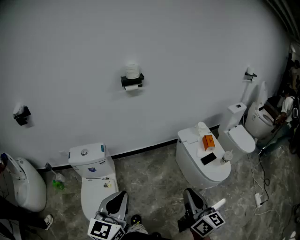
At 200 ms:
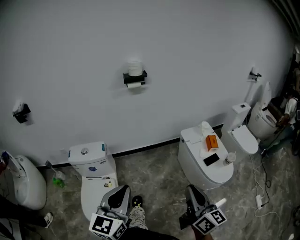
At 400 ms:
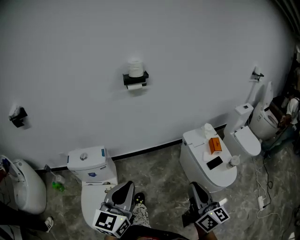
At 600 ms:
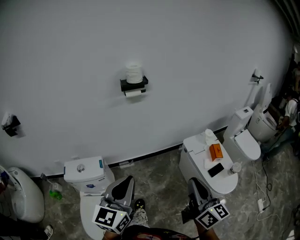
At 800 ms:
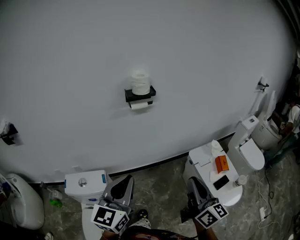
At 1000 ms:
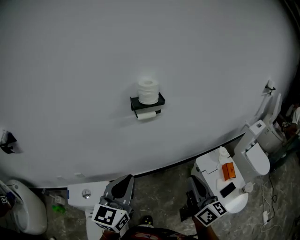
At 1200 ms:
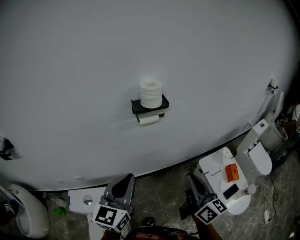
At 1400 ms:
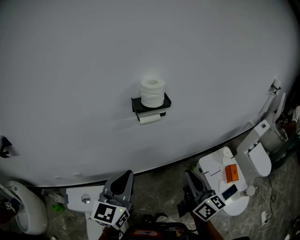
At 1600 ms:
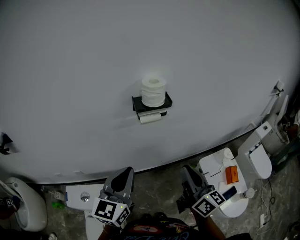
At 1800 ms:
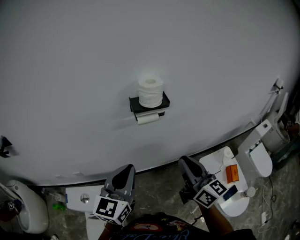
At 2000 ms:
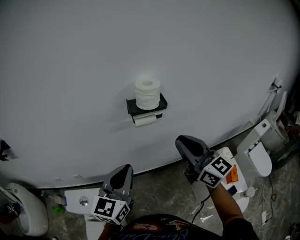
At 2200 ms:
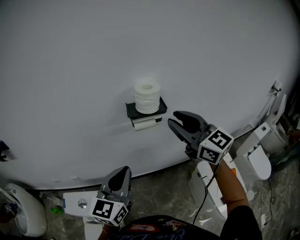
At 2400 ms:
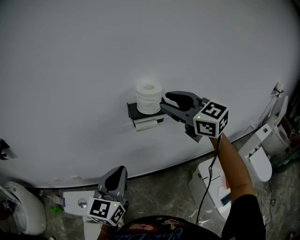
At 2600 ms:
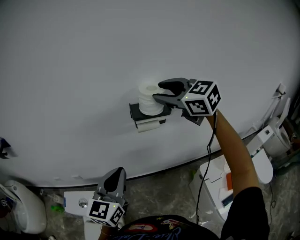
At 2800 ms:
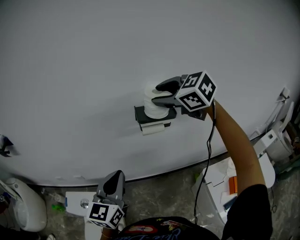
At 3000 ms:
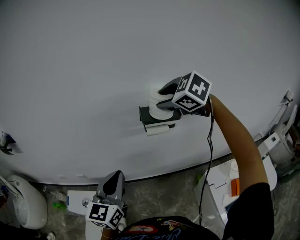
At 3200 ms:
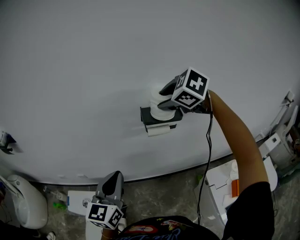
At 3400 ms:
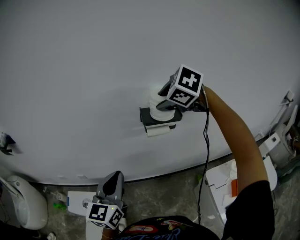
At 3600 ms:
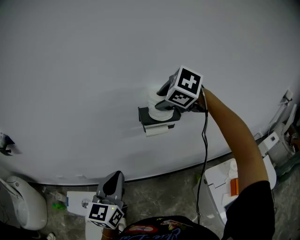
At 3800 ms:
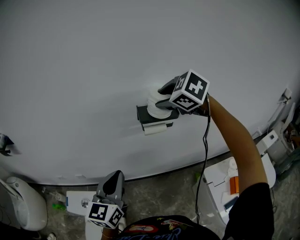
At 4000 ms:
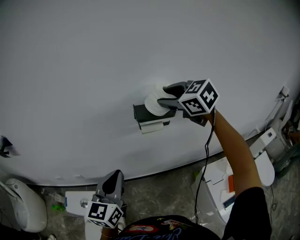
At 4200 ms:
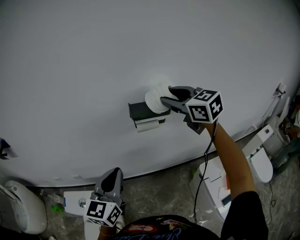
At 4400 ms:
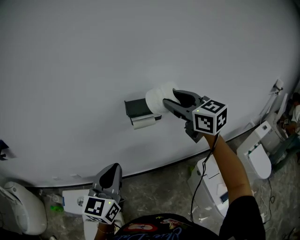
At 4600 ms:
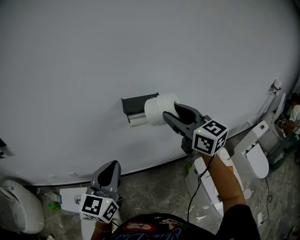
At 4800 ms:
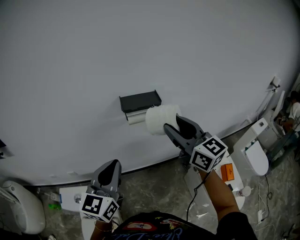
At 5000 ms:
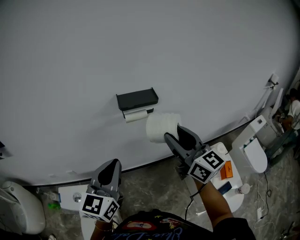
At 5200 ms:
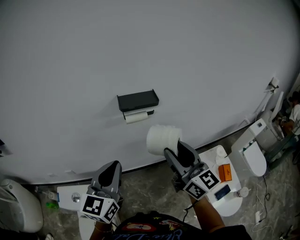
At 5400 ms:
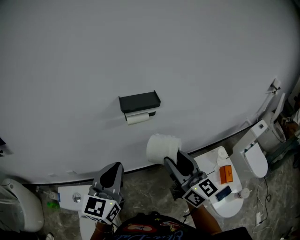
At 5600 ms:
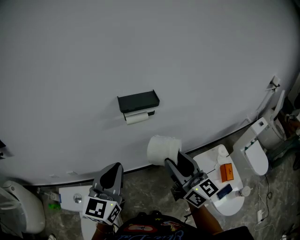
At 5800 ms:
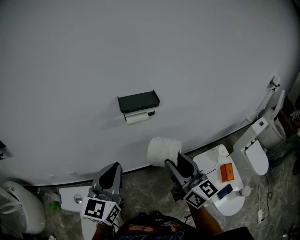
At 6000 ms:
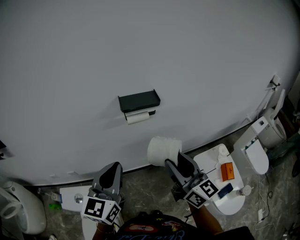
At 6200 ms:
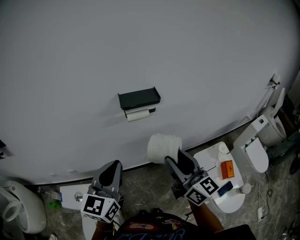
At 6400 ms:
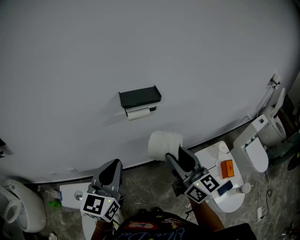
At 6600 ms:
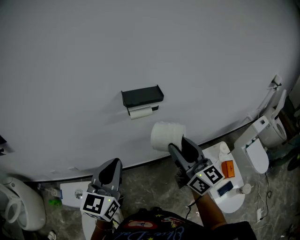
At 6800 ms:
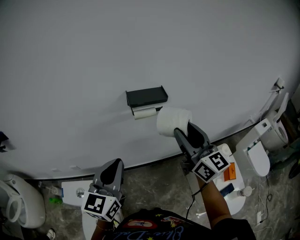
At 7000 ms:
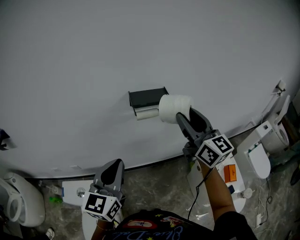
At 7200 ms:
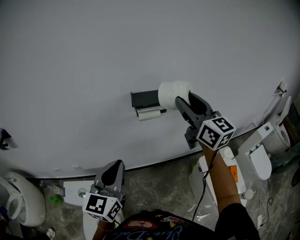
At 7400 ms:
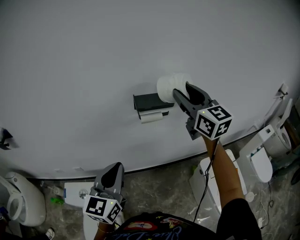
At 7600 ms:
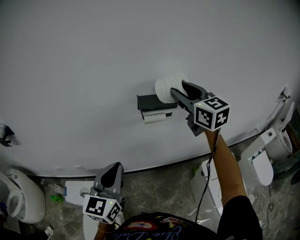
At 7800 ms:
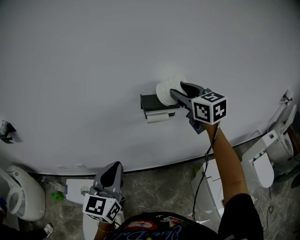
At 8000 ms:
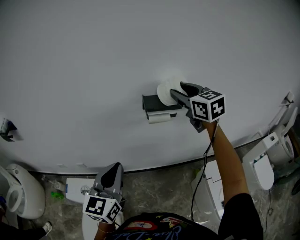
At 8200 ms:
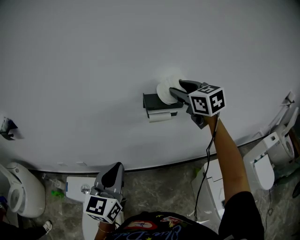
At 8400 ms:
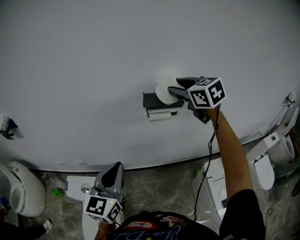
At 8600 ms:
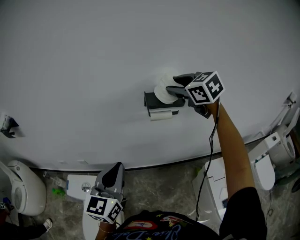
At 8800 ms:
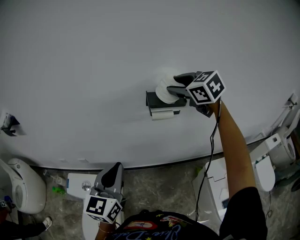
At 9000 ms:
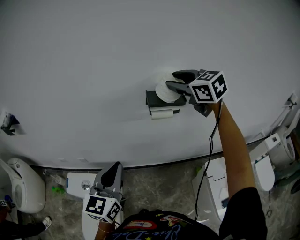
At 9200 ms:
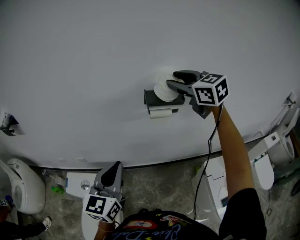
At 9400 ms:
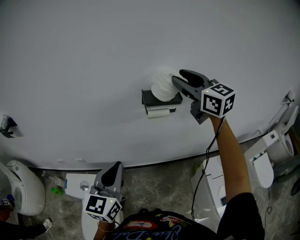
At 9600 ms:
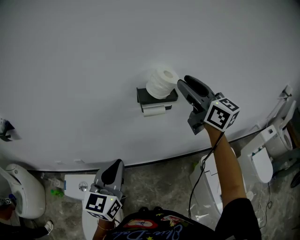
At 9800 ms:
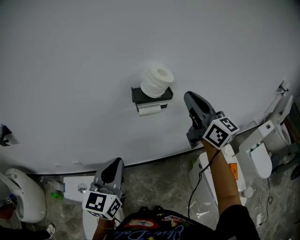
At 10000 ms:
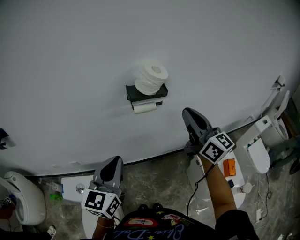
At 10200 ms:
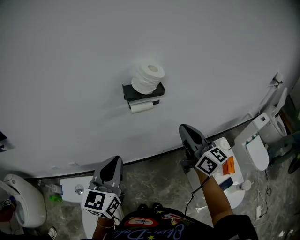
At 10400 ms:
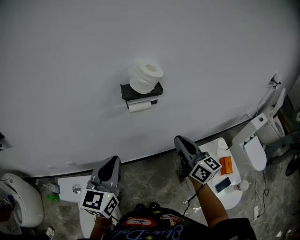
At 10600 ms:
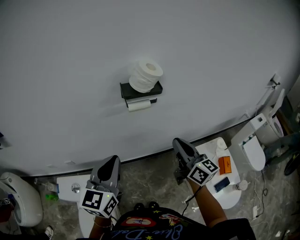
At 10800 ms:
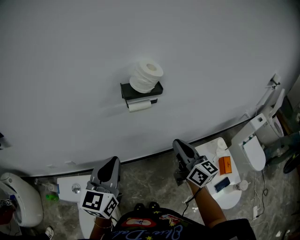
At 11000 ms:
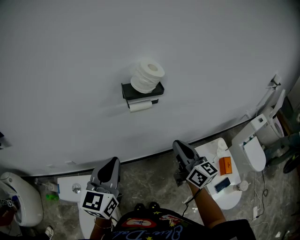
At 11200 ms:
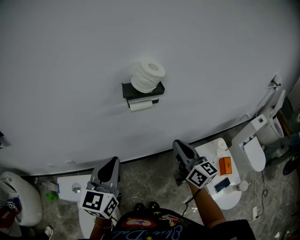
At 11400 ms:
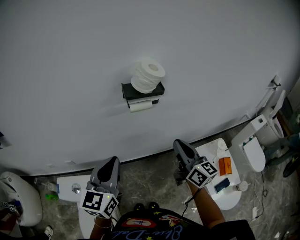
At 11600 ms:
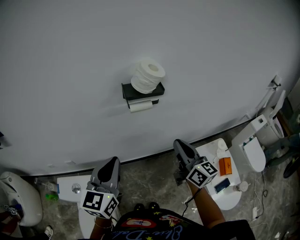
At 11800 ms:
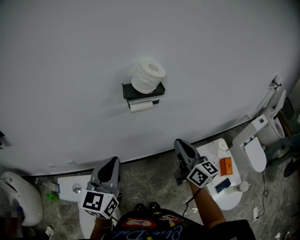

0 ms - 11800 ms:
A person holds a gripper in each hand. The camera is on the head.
0 ms - 1400 ms: Both grippers are carried forward, some 50 cm.
1400 ms - 3000 ms: The left gripper moves forward, approximately 5 cm, while the right gripper is displaced forward and upward by about 35 cm, tips its fingers downward by roughly 50 degrees, and opens its fingers.
3000 ms - 4400 ms: The right gripper heads to the right and backward, covering approximately 10 cm, and angles its fingers upward, by roughly 40 degrees.
4400 ms - 6000 ms: The right gripper shifts roughly 20 cm backward and downward, and changes its angle by some 30 degrees.
6000 ms - 7400 ms: The right gripper travels forward and upward by about 25 cm, and turns by some 20 degrees.
7400 ms - 8800 ms: The right gripper goes roughly 10 cm forward and to the left, and tips its fingers downward by roughly 40 degrees.
8800 ms - 10400 ms: The right gripper moves backward, downward and to the right, about 25 cm, tilts its fingers roughly 40 degrees upward, and closes its fingers; the left gripper moves to the right, some 5 cm.
10400 ms - 11800 ms: The grippers make only small movements.

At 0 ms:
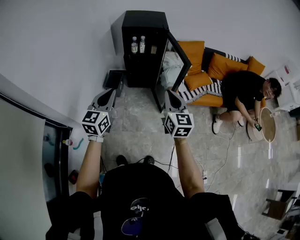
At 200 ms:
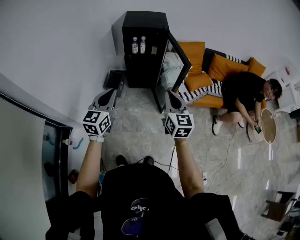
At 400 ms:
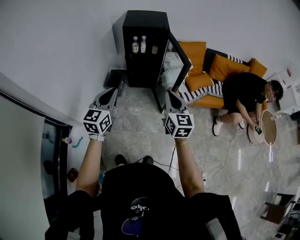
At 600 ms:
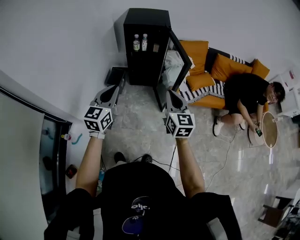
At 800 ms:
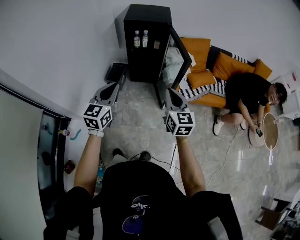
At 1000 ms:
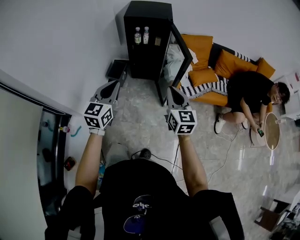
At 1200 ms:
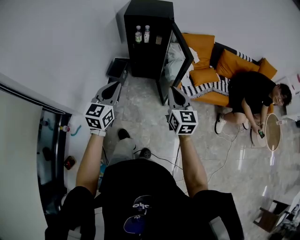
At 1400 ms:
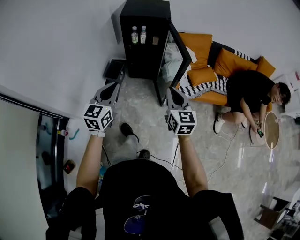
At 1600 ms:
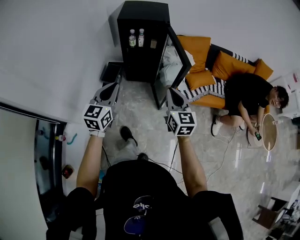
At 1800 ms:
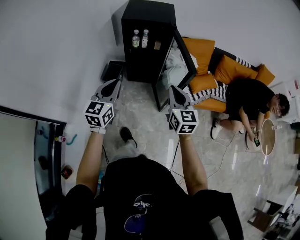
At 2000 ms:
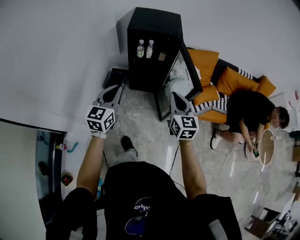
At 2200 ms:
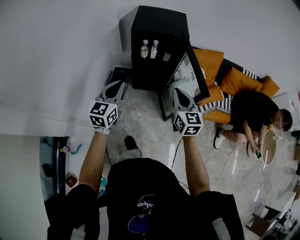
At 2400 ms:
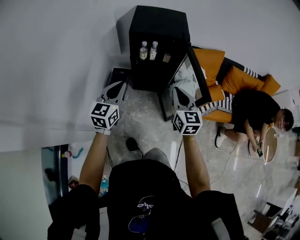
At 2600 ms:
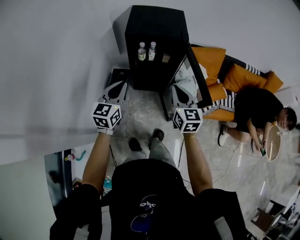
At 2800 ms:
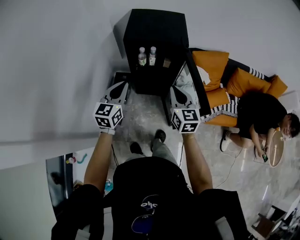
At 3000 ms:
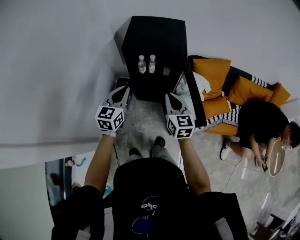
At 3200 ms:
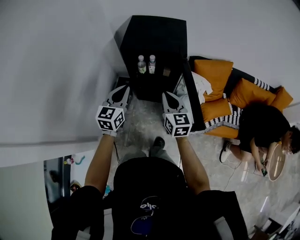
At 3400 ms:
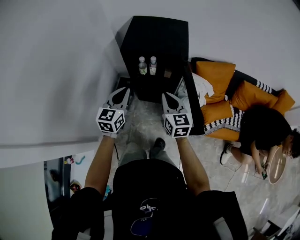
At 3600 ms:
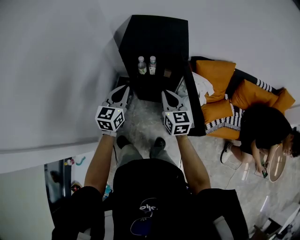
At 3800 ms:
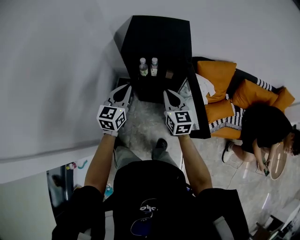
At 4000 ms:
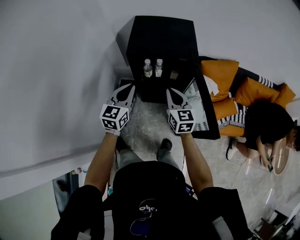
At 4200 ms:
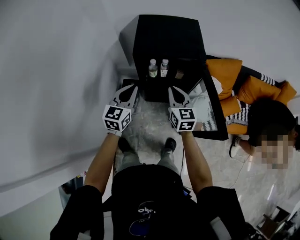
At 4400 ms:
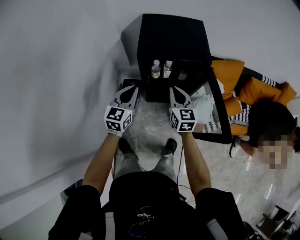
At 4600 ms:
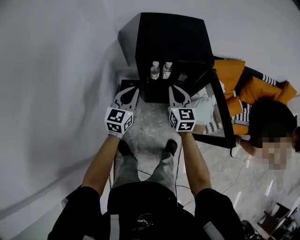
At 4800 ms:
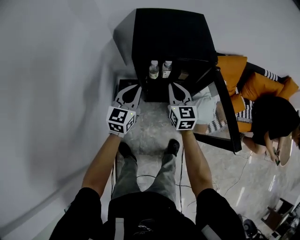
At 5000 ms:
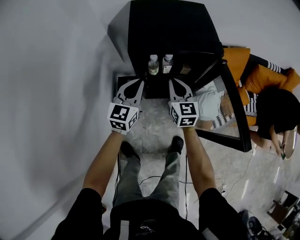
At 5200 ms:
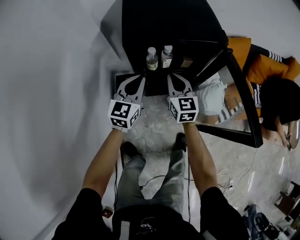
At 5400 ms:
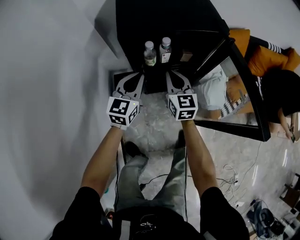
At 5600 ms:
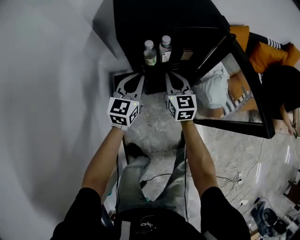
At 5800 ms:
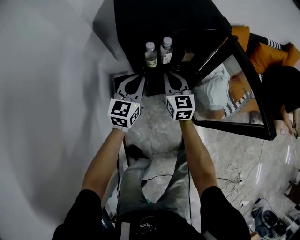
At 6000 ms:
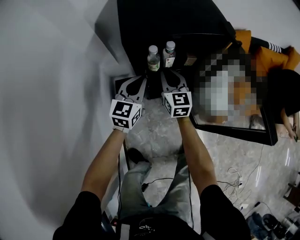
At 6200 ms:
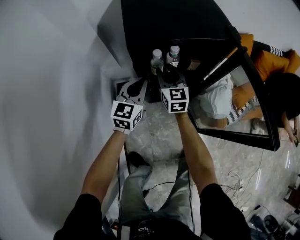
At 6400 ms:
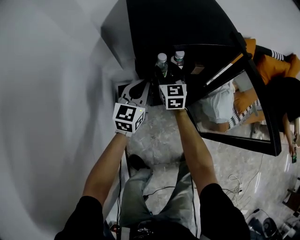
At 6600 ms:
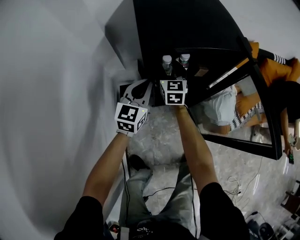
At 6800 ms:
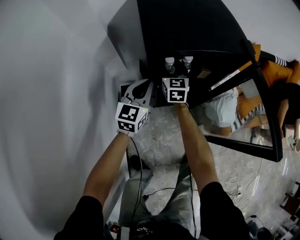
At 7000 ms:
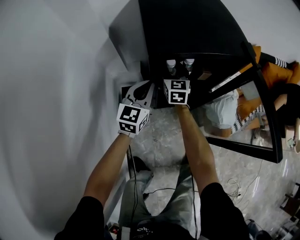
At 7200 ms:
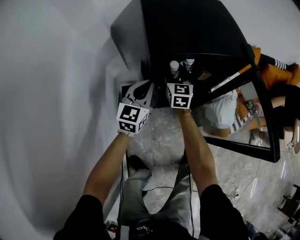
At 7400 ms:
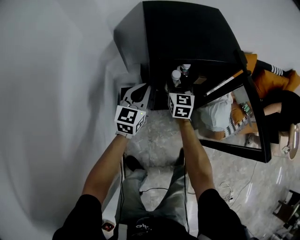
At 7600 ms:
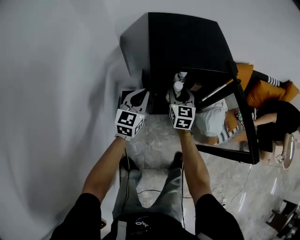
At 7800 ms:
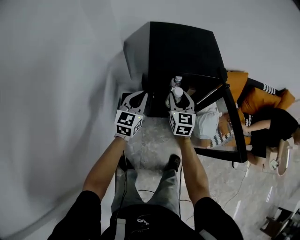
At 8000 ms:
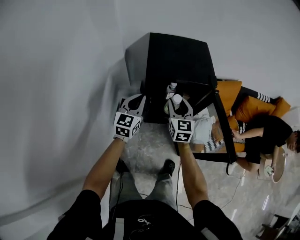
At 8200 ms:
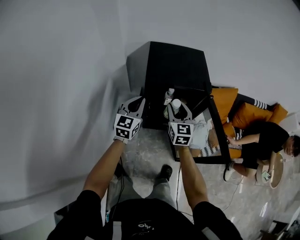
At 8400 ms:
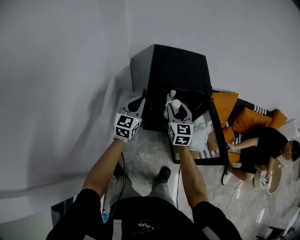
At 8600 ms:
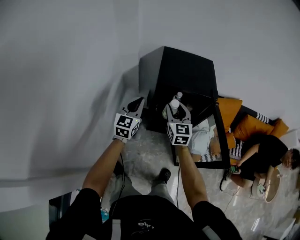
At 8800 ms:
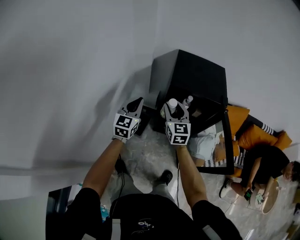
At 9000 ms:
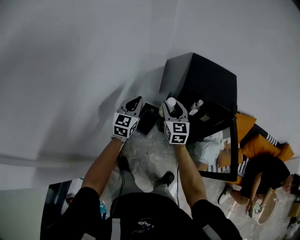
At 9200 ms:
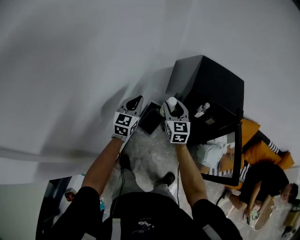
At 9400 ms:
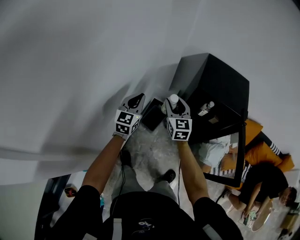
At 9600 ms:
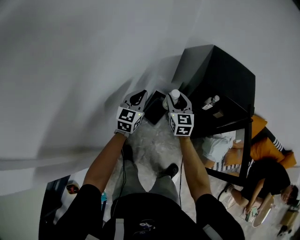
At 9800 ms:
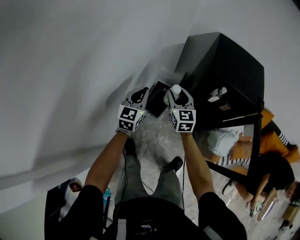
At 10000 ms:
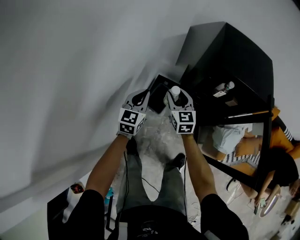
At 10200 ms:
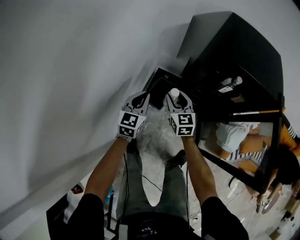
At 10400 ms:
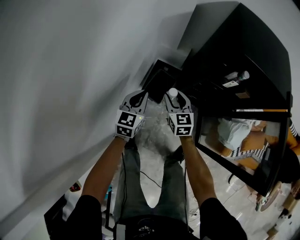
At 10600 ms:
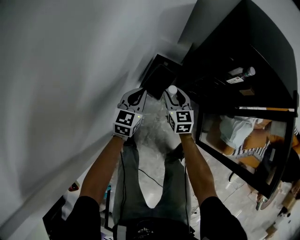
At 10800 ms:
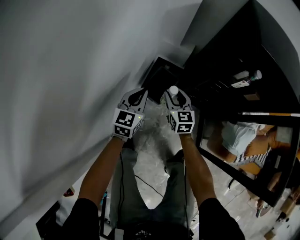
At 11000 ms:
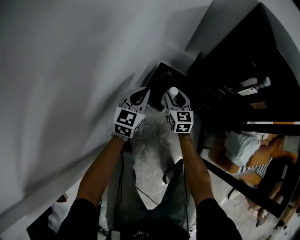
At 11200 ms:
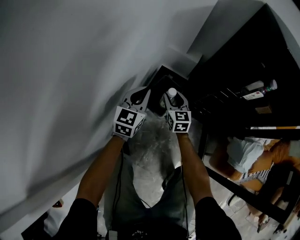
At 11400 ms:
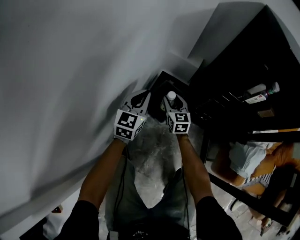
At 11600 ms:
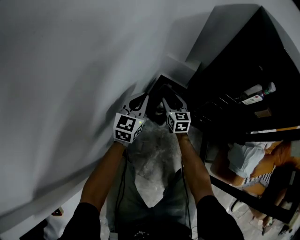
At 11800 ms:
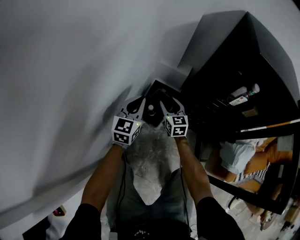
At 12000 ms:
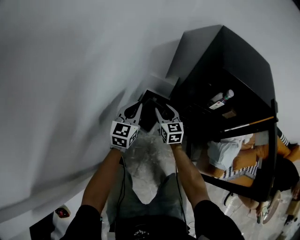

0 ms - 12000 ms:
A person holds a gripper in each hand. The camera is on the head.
0 ms - 1600 ms: Both grippers move forward and to the right, some 10 cm.
1600 ms - 3000 ms: The two grippers go approximately 30 cm forward.
3000 ms - 4400 ms: Both grippers travel together forward, to the left and downward, about 15 cm.
4400 ms - 6000 ms: Both grippers travel together downward and forward, about 20 cm.
6000 ms - 7600 ms: The right gripper is displaced upward by some 5 cm, reaches about 10 cm forward, then returns, and opens its fingers. The left gripper heads upward and to the left, covering roughly 10 cm.
7600 ms - 9000 ms: The right gripper shifts by roughly 30 cm, and turns by approximately 30 degrees. The left gripper moves approximately 25 cm, and turns by roughly 30 degrees.
9000 ms - 10400 ms: The two grippers go some 35 cm downward.
10400 ms - 12000 ms: The right gripper moves forward, some 5 cm, and moves approximately 25 cm downward and comes back, while the left gripper goes downward and returns, about 15 cm each way.
